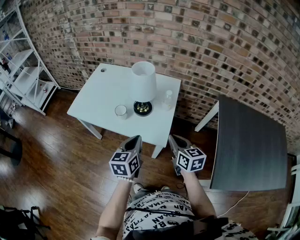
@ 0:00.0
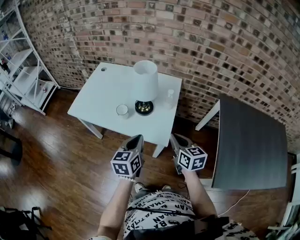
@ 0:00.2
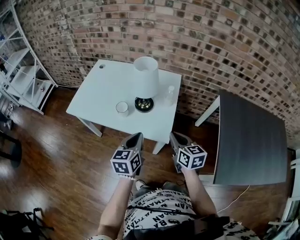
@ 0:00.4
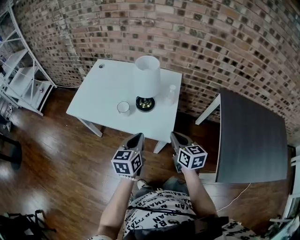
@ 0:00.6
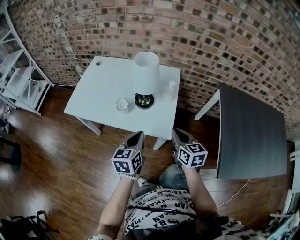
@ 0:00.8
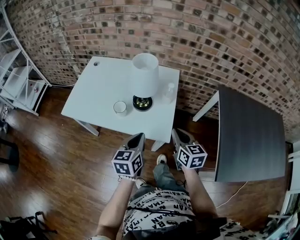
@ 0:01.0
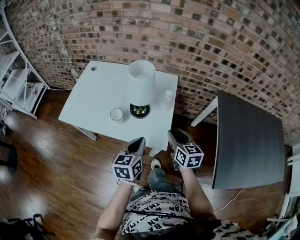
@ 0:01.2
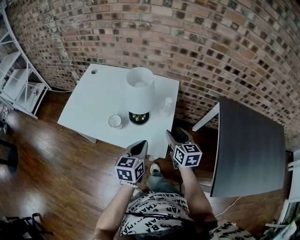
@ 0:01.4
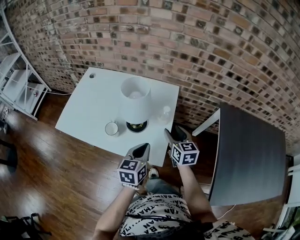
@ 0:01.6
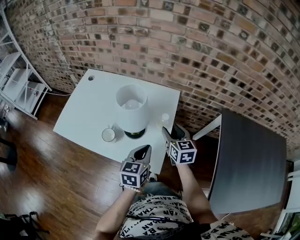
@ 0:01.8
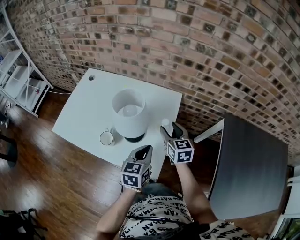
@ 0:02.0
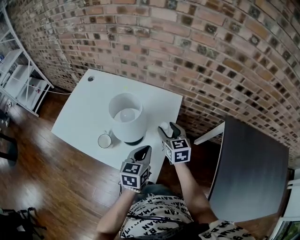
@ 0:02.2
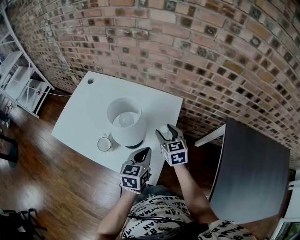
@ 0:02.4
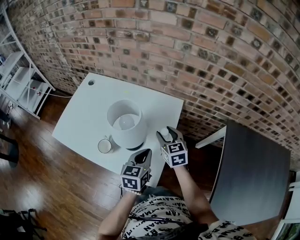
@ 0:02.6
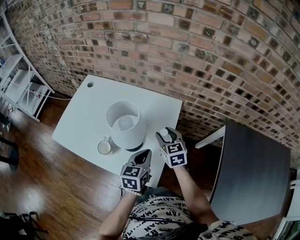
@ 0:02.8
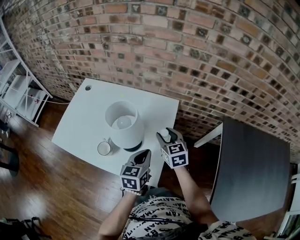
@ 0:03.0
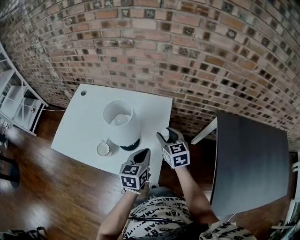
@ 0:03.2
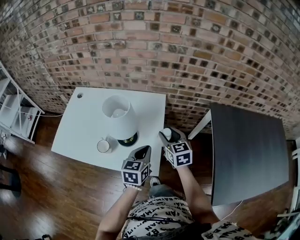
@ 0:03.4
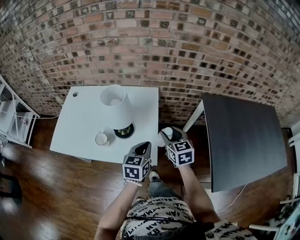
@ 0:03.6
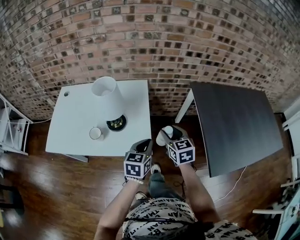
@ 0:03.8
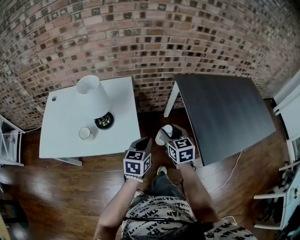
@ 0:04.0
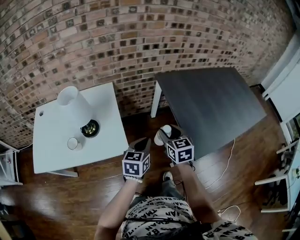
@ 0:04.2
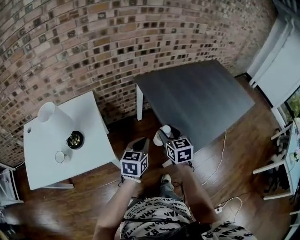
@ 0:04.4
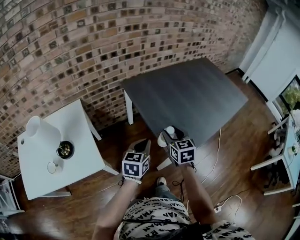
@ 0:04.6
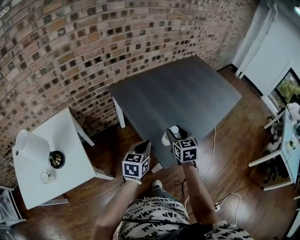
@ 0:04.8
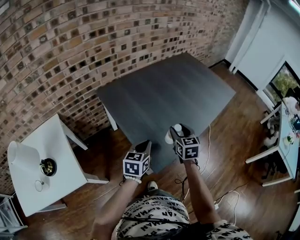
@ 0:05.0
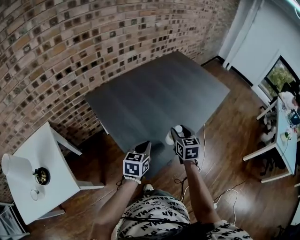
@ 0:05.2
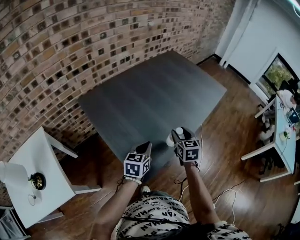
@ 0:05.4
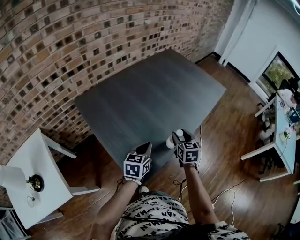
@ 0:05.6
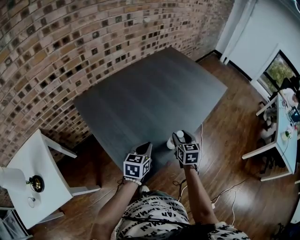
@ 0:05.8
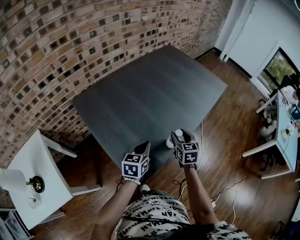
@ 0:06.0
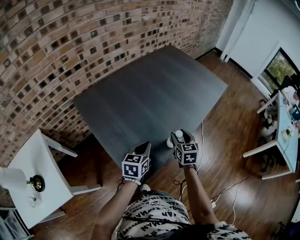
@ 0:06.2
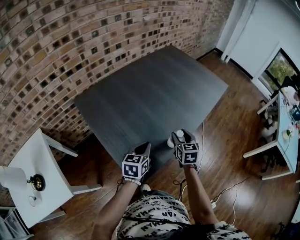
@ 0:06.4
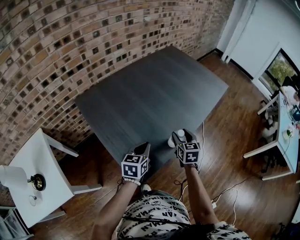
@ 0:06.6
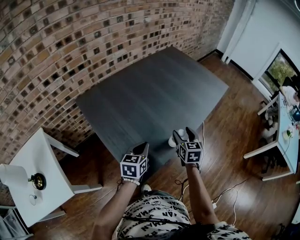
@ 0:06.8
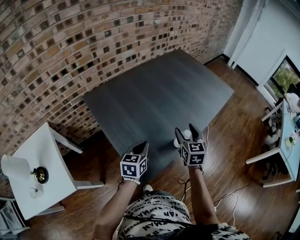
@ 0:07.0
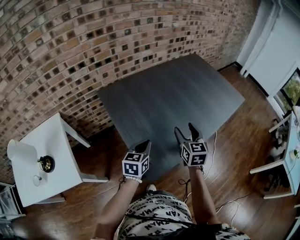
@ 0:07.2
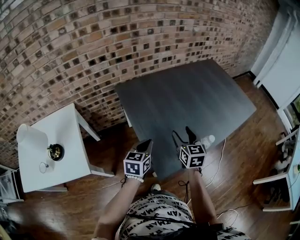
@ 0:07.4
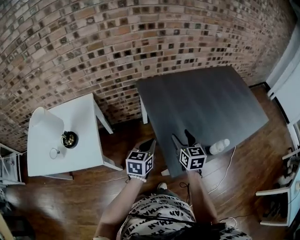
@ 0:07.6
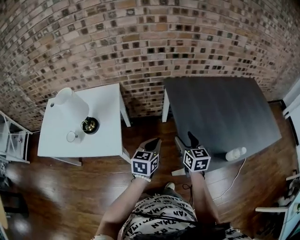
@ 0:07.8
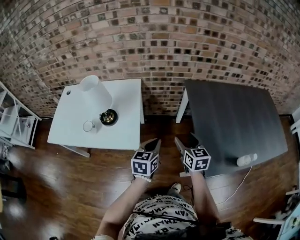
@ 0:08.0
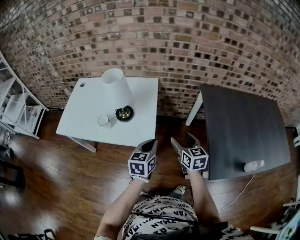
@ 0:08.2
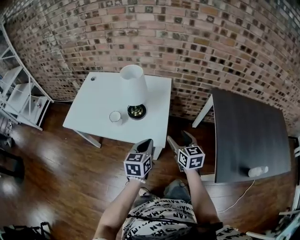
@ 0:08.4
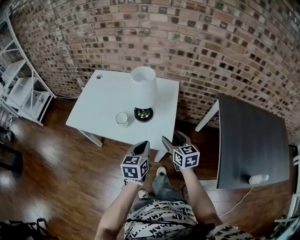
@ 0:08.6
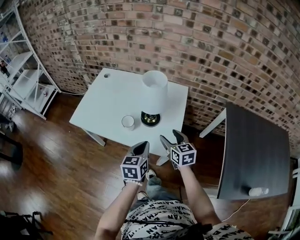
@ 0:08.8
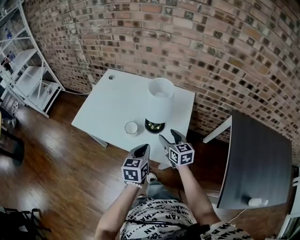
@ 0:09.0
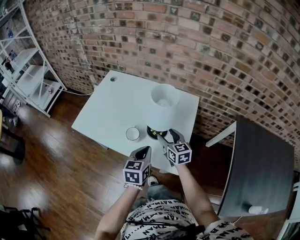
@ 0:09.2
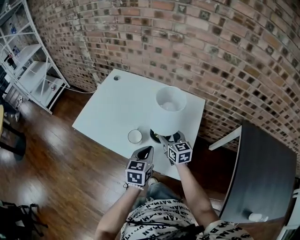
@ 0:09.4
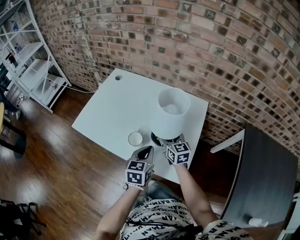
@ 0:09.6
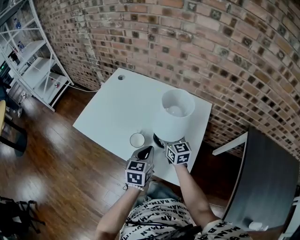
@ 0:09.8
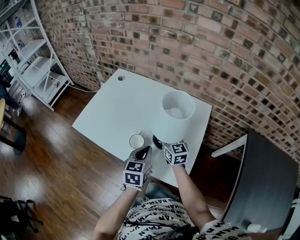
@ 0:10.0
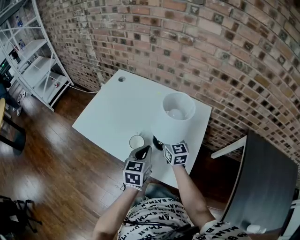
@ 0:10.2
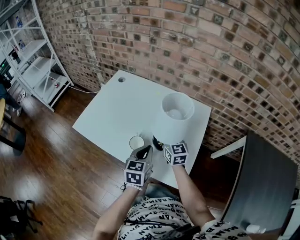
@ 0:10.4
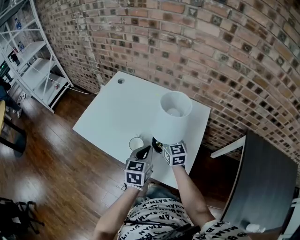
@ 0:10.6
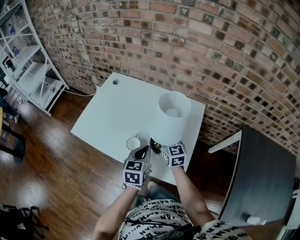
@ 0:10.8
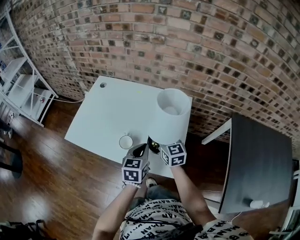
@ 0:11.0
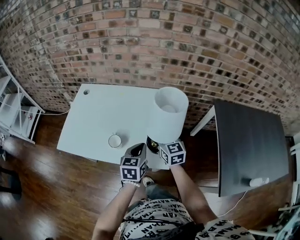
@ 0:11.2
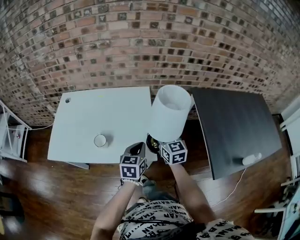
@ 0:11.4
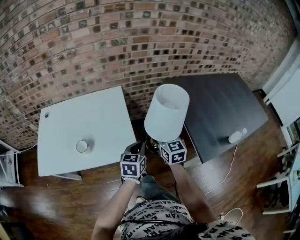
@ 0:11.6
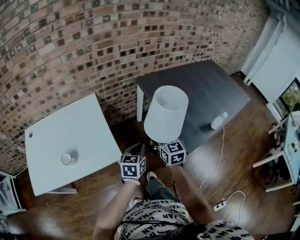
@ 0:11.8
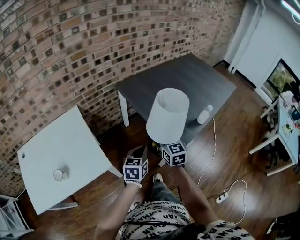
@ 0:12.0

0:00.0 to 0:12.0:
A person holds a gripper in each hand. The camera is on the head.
0:00.0 to 0:01.6: The left gripper travels forward and to the right by about 10 cm, while the right gripper travels forward by roughly 15 cm, and opens its fingers.
0:01.6 to 0:03.0: Both grippers move forward, roughly 10 cm.
0:03.0 to 0:04.4: The left gripper changes place by some 35 cm, and rotates some 40 degrees. The right gripper ends up approximately 50 cm from where it was, and rotates about 40 degrees.
0:04.4 to 0:06.0: The grippers both shift to the right and forward by roughly 40 cm. The left gripper turns by approximately 20 degrees, while the right gripper turns by some 30 degrees.
0:06.0 to 0:07.6: The right gripper changes place by roughly 30 cm, and swivels about 30 degrees; the left gripper shifts by some 25 cm, and changes its angle by roughly 30 degrees.
0:07.6 to 0:09.0: Both grippers are carried about 60 cm. The right gripper swivels approximately 50 degrees. The left gripper turns by about 40 degrees.
0:09.0 to 0:10.4: Both grippers move forward, roughly 10 cm. The right gripper closes up.
0:10.4 to 0:12.0: Both grippers are carried some 50 cm. The left gripper rotates some 60 degrees, while the right gripper swivels roughly 60 degrees.

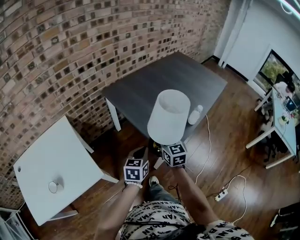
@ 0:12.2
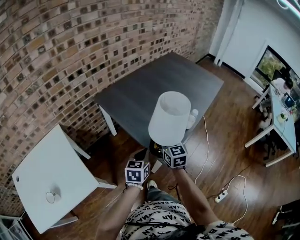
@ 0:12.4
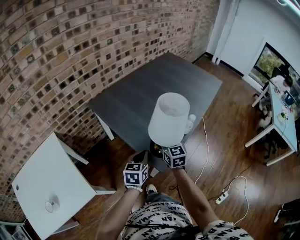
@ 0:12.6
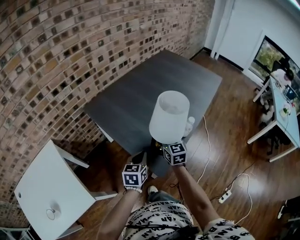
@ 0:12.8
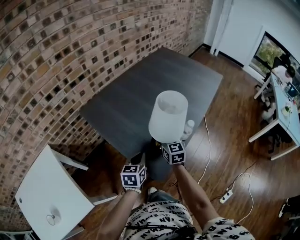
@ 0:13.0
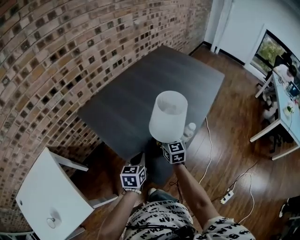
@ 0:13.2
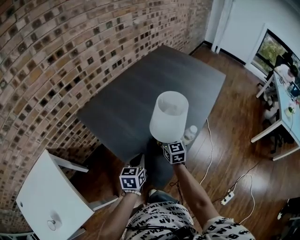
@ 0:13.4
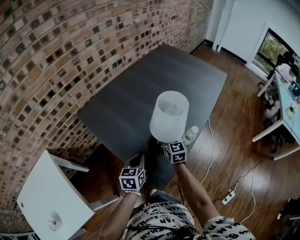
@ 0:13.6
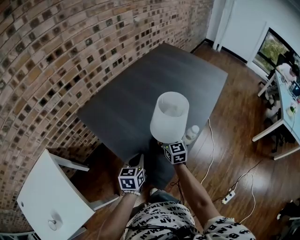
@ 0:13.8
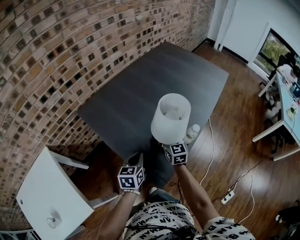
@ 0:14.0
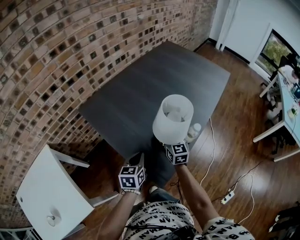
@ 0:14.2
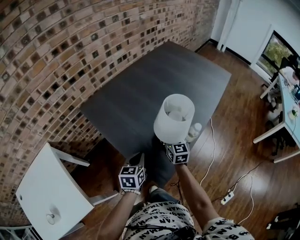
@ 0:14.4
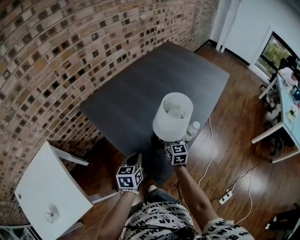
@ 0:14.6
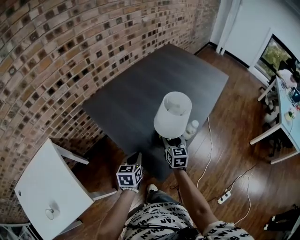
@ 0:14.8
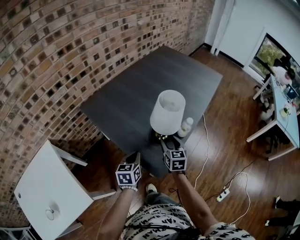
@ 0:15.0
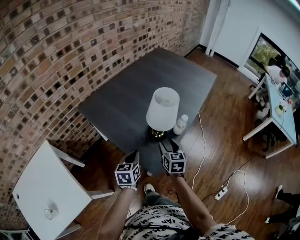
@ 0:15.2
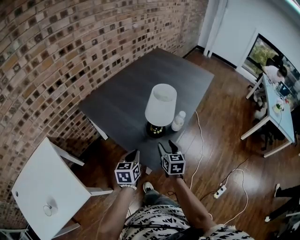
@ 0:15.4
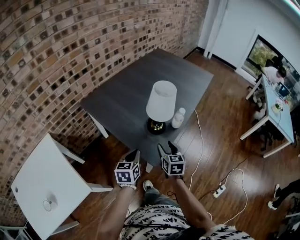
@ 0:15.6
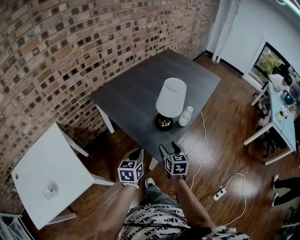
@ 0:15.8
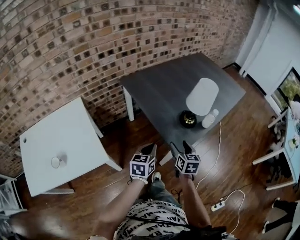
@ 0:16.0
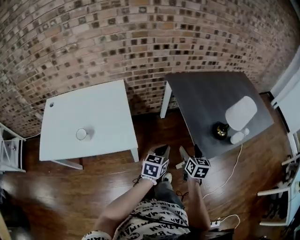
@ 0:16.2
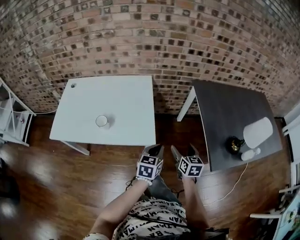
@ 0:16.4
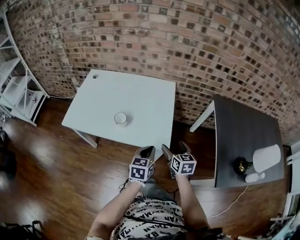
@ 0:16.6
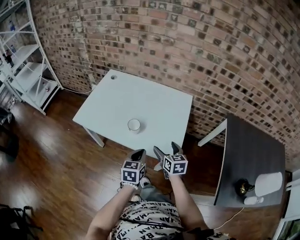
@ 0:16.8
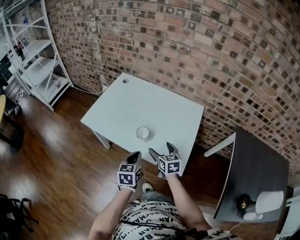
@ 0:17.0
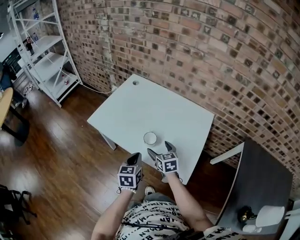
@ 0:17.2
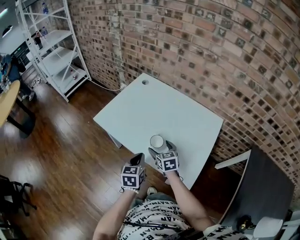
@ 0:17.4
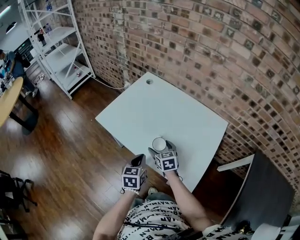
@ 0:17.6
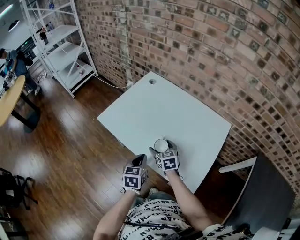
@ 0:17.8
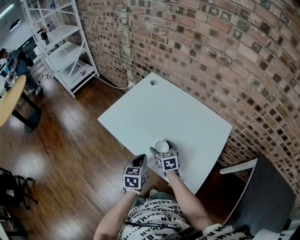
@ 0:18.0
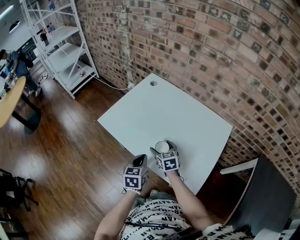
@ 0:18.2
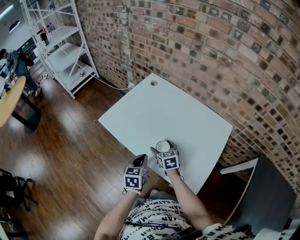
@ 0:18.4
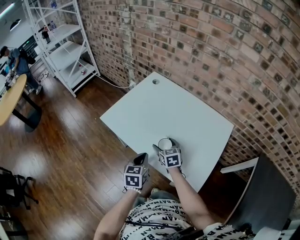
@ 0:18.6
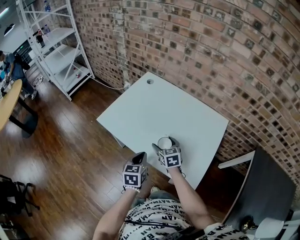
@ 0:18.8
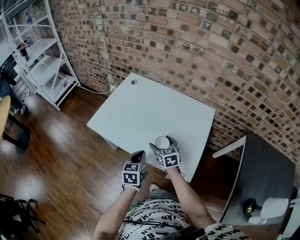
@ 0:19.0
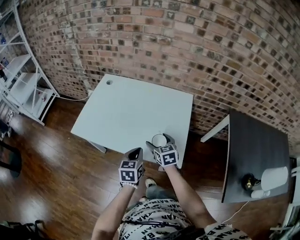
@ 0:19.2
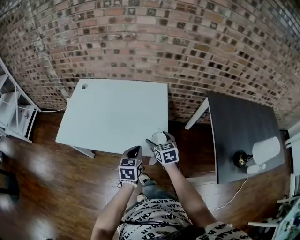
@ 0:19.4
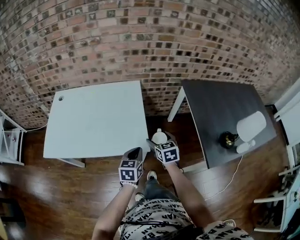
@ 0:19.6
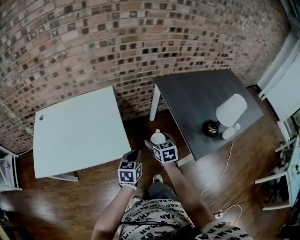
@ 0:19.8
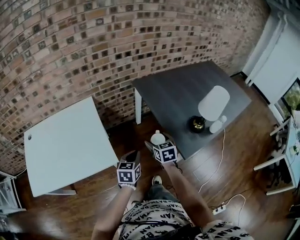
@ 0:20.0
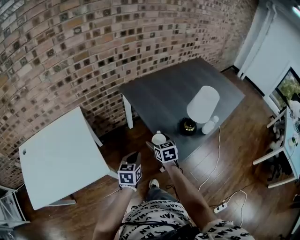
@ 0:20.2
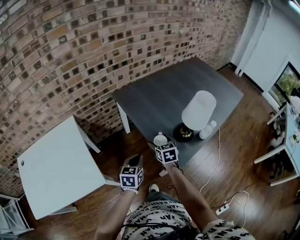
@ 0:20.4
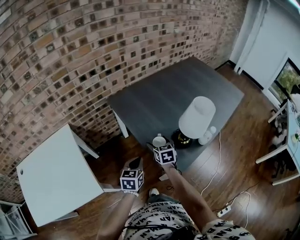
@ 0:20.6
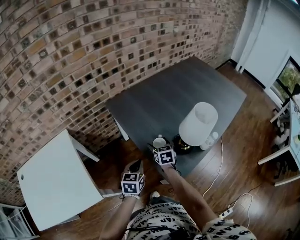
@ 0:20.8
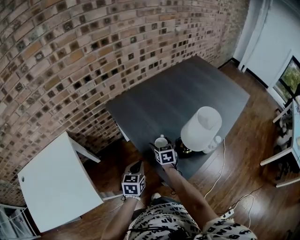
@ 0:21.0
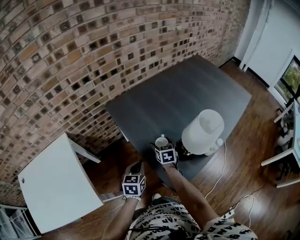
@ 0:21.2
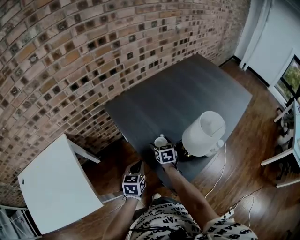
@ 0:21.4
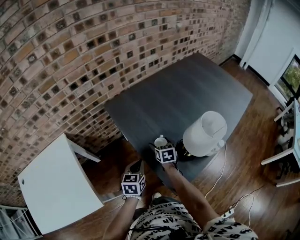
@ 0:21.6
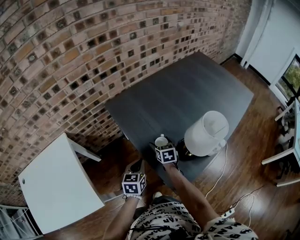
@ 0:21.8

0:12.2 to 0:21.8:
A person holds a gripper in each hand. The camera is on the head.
0:12.2 to 0:13.8: The right gripper heads forward, to the right and downward, covering roughly 30 cm, while the left gripper heads forward, covering about 20 cm.
0:13.8 to 0:15.4: The right gripper travels backward by roughly 20 cm, and opens its fingers. Meanwhile the left gripper shifts about 10 cm backward.
0:15.4 to 0:17.0: The pair of grippers is taken about 70 cm. The right gripper turns by approximately 90 degrees, and opens up. Meanwhile the left gripper swivels approximately 70 degrees.
0:17.0 to 0:18.6: The left gripper shifts about 10 cm forward and to the left. The right gripper is displaced forward, to the left and downward by approximately 20 cm.
0:18.6 to 0:20.2: The pair of grippers is taken about 60 cm. The left gripper turns by approximately 70 degrees. The right gripper turns by about 70 degrees.
0:20.2 to 0:21.8: The left gripper heads forward and to the right, covering about 20 cm. Meanwhile the right gripper is displaced forward, downward and to the right by some 25 cm.

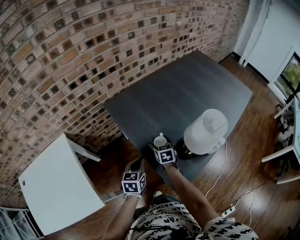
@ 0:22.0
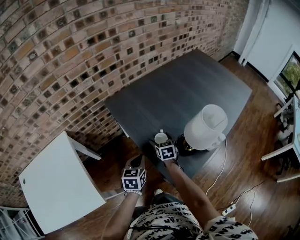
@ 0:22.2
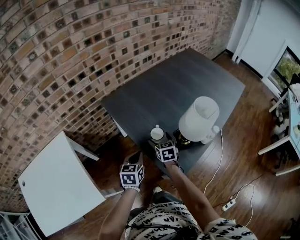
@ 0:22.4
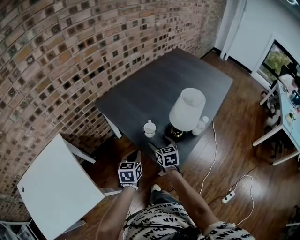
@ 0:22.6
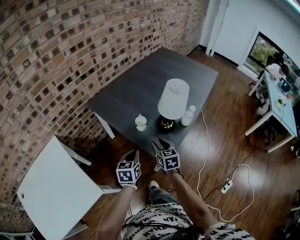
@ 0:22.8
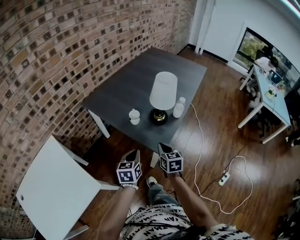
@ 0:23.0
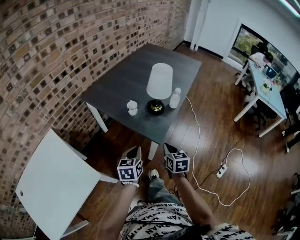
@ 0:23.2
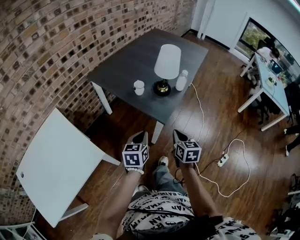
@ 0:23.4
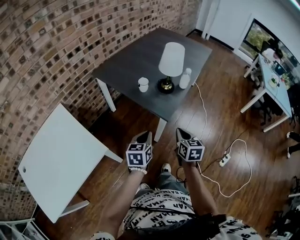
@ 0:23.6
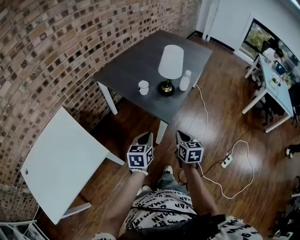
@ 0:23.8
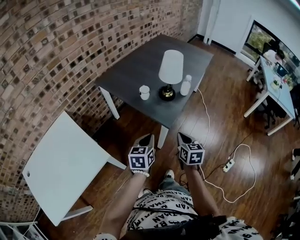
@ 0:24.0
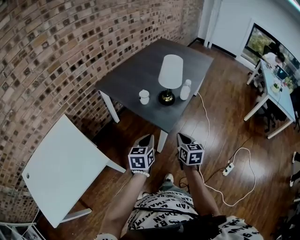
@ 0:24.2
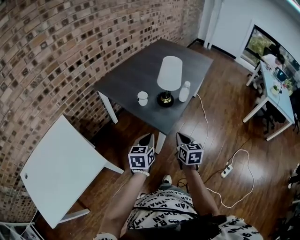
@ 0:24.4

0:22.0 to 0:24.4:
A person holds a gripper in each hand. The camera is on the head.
0:22.0 to 0:23.2: The left gripper moves backward, roughly 20 cm. Meanwhile the right gripper shifts roughly 35 cm backward, turns by approximately 30 degrees, and closes.
0:23.2 to 0:24.4: The right gripper changes place by about 5 cm. Meanwhile the left gripper changes place by about 5 cm.
